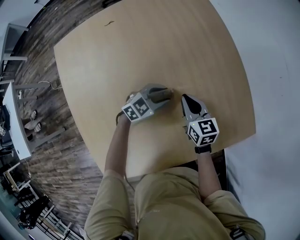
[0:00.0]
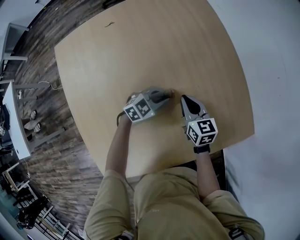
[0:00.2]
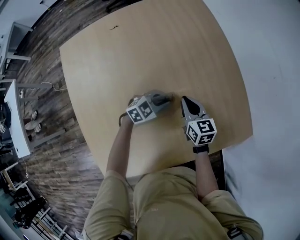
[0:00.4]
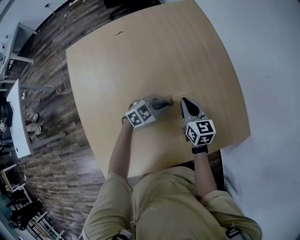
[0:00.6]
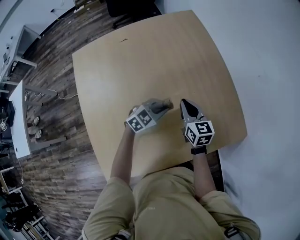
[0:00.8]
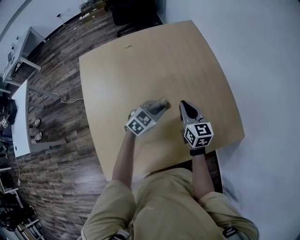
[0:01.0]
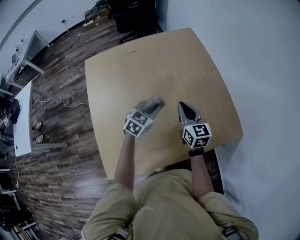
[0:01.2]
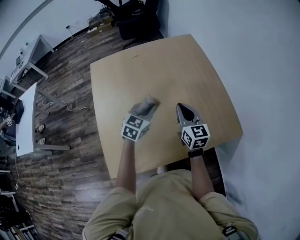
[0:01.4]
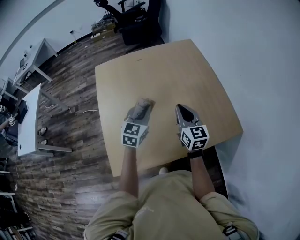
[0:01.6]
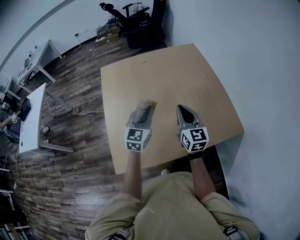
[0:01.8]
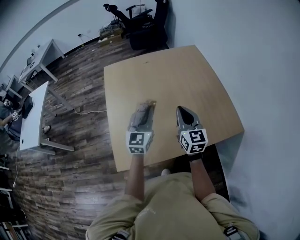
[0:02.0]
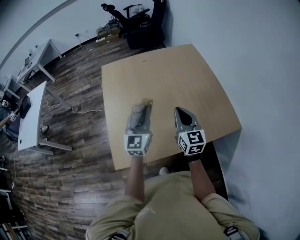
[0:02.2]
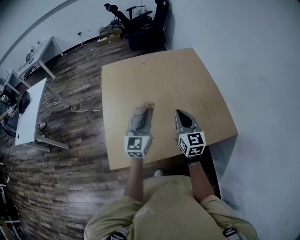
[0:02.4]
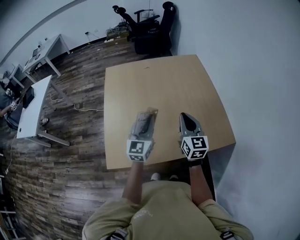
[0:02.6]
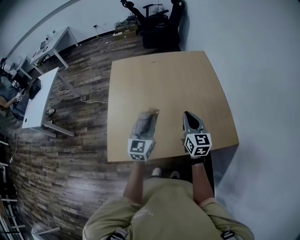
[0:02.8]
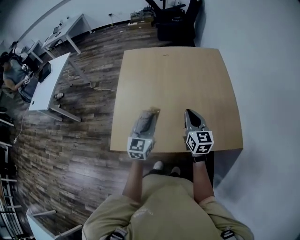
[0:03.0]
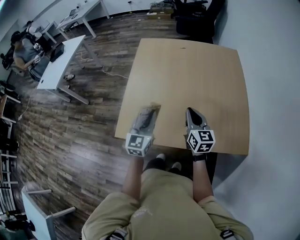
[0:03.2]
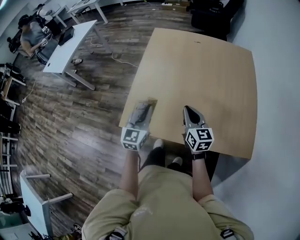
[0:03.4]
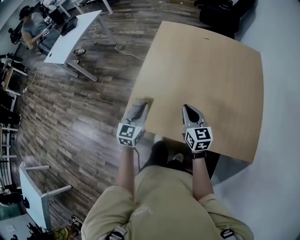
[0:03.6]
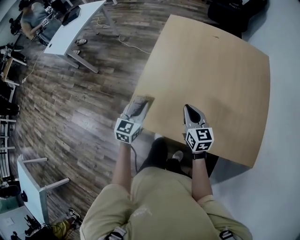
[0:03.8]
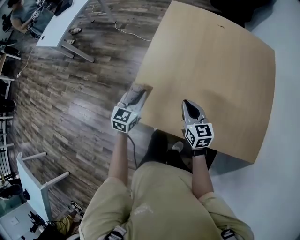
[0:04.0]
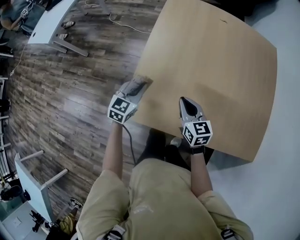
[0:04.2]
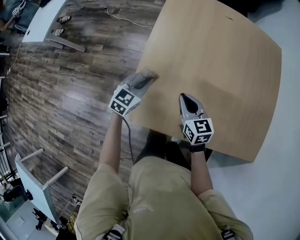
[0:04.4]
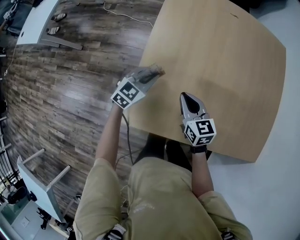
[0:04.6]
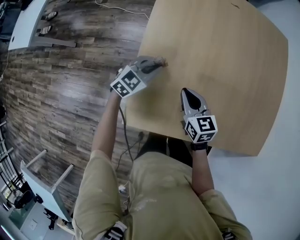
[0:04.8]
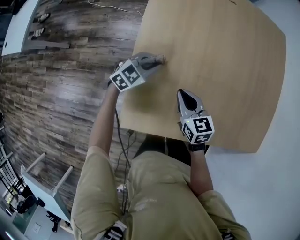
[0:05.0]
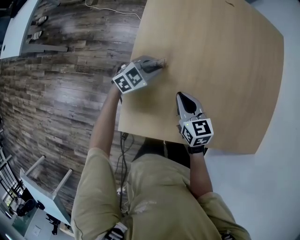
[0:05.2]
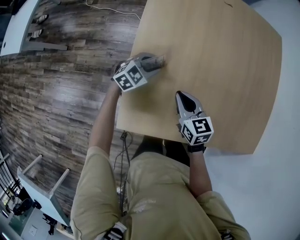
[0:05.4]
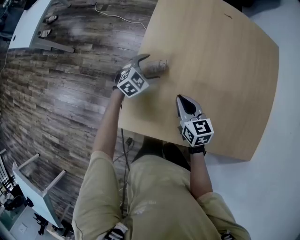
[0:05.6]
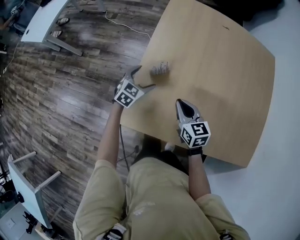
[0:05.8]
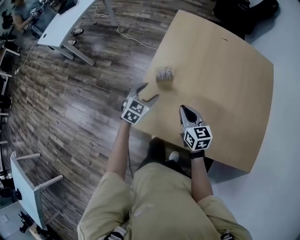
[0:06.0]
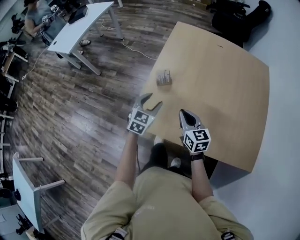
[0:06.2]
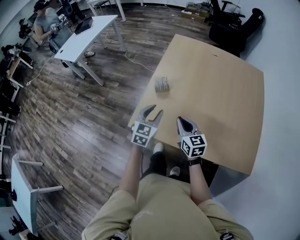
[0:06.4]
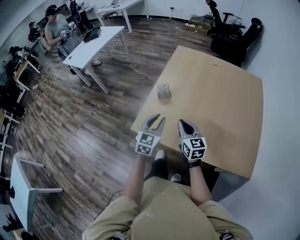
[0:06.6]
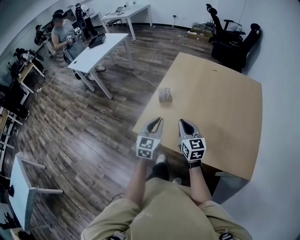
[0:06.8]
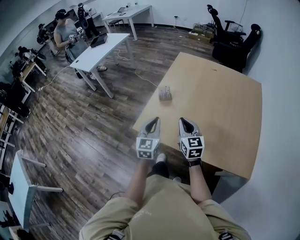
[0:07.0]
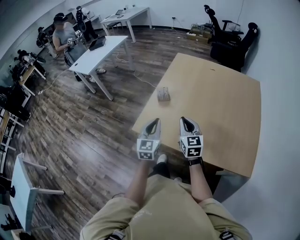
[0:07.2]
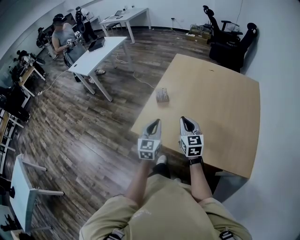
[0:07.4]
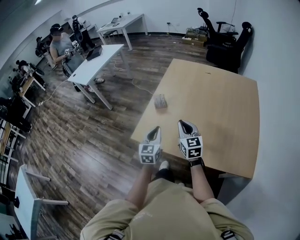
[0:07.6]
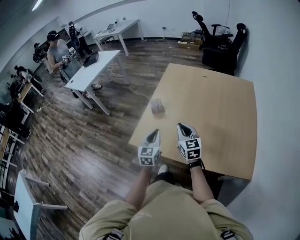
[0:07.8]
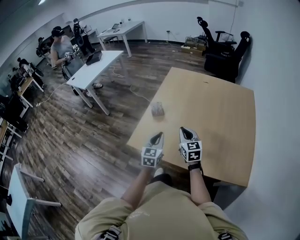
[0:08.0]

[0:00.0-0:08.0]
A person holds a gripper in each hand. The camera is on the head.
0:00.0 to 0:01.6: The two grippers go roughly 25 cm upward. The right gripper rotates approximately 20 degrees, while the left gripper swivels roughly 50 degrees.
0:01.6 to 0:03.2: The right gripper moves backward, some 10 cm, and goes to the right and returns, approximately 5 cm each way. Meanwhile the left gripper is displaced backward by some 15 cm, and swivels approximately 30 degrees.
0:03.2 to 0:04.8: The right gripper is displaced to the left, downward and forward by roughly 35 cm, and turns by about 30 degrees. Meanwhile the left gripper travels downward, forward and to the left by approximately 40 cm, and turns by some 40 degrees.
0:04.8 to 0:06.4: The right gripper moves roughly 20 cm; the left gripper changes place by about 30 cm, rotates about 40 degrees, and opens, then closes again.
0:06.4 to 0:08.0: The right gripper is displaced to the right by some 10 cm. Meanwhile the left gripper heads backward and to the right, covering some 10 cm.

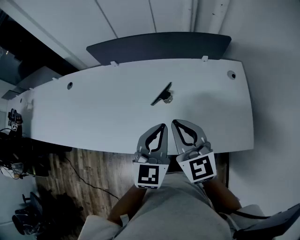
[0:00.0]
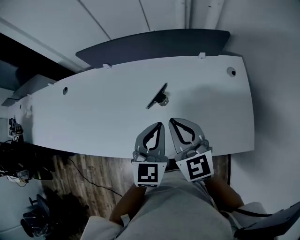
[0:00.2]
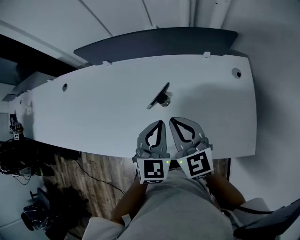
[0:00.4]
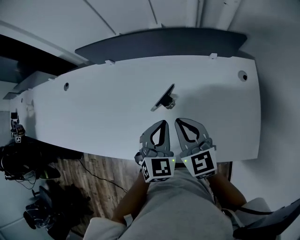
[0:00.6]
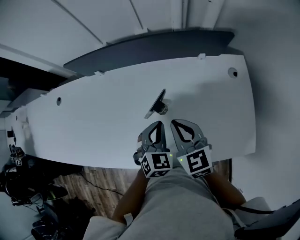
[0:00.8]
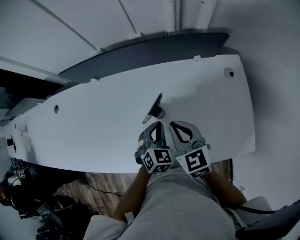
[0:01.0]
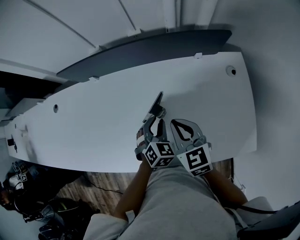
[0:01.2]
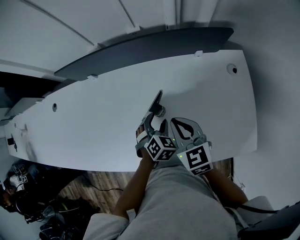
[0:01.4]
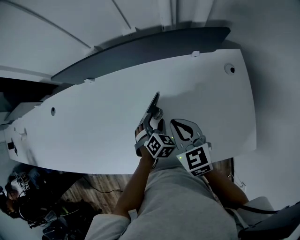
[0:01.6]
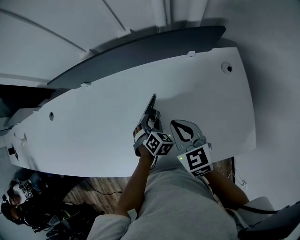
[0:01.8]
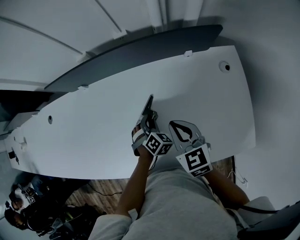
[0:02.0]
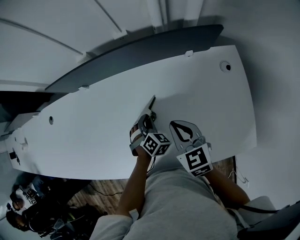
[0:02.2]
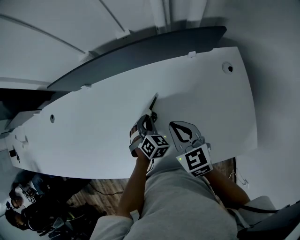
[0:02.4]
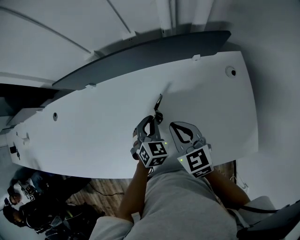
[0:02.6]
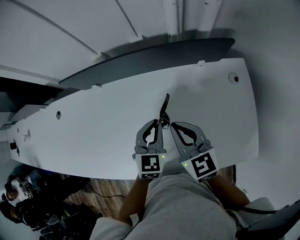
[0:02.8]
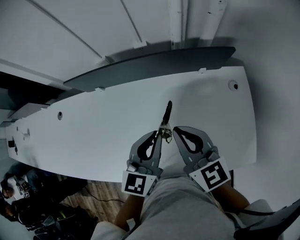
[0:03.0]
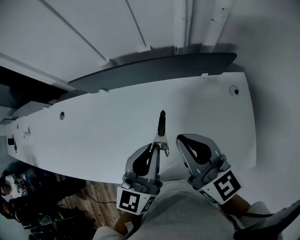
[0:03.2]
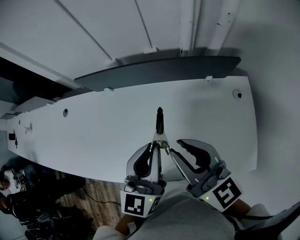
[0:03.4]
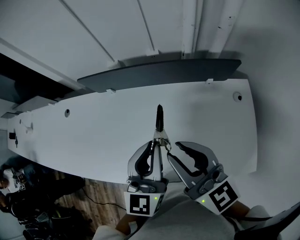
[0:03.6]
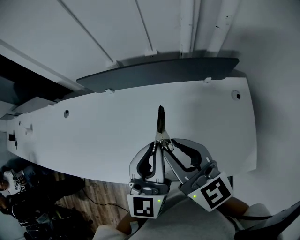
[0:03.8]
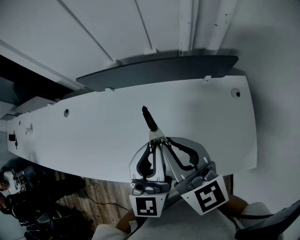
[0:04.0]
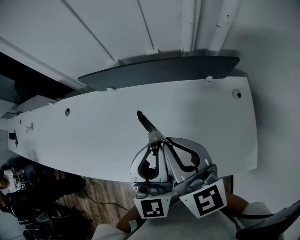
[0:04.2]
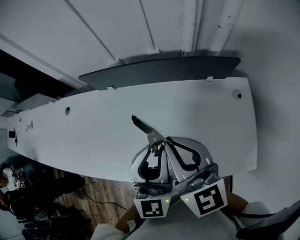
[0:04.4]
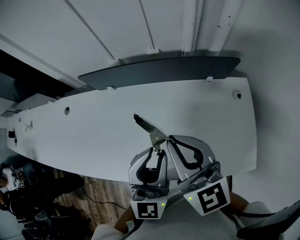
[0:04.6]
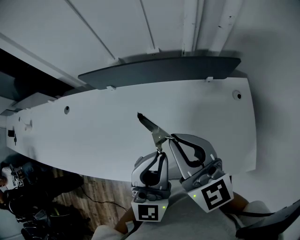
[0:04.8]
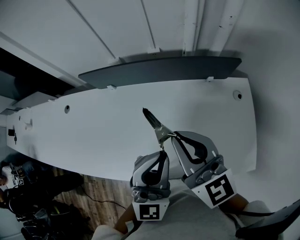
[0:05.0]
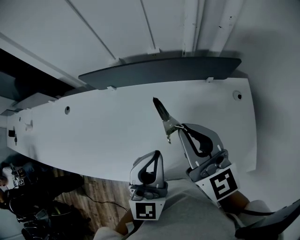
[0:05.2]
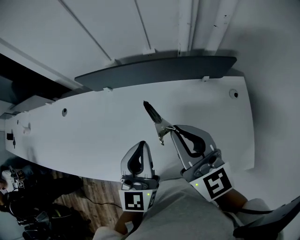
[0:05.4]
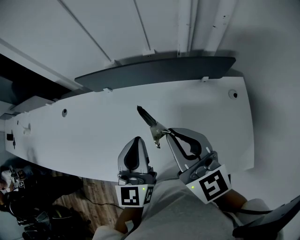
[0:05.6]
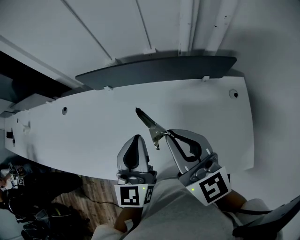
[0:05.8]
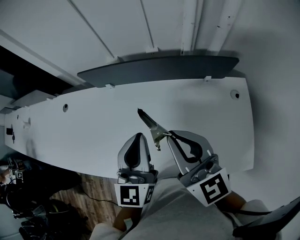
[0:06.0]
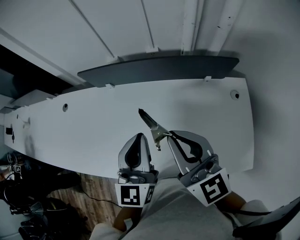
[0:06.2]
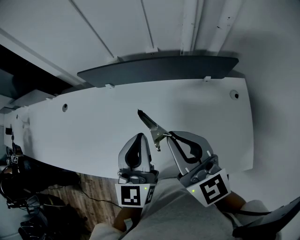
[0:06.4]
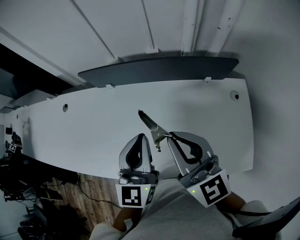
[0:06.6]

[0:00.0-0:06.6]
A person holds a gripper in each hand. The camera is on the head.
0:00.0 to 0:01.6: The right gripper travels forward, downward and to the right by some 20 cm, while the left gripper heads downward and forward, covering about 30 cm, tilts its fingers about 40 degrees downward, and opens.
0:01.6 to 0:03.2: The right gripper moves upward, approximately 20 cm, and swivels approximately 30 degrees. Meanwhile the left gripper shifts roughly 30 cm upward, angles its fingers upward, by some 50 degrees, and closes up.
0:03.2 to 0:05.0: The right gripper changes place by some 5 cm, and opens and closes again; the left gripper shifts roughly 5 cm backward and upward, and changes its angle by some 30 degrees.
0:05.0 to 0:06.6: The left gripper shifts about 5 cm forward, and changes its angle by approximately 20 degrees.

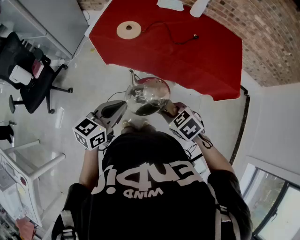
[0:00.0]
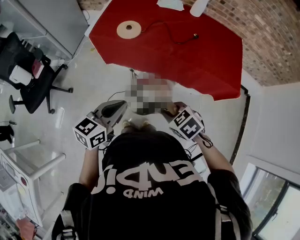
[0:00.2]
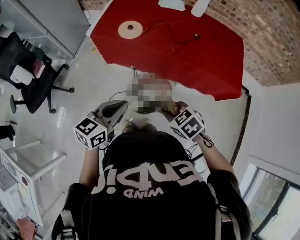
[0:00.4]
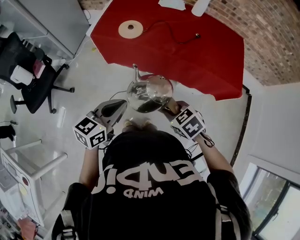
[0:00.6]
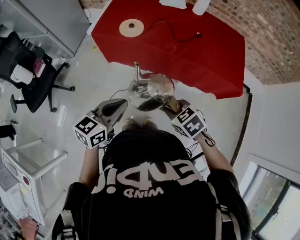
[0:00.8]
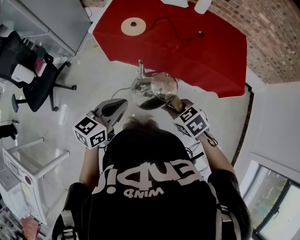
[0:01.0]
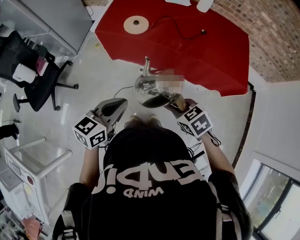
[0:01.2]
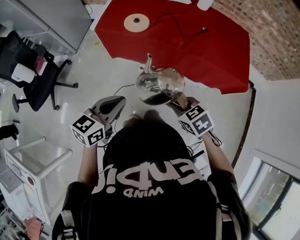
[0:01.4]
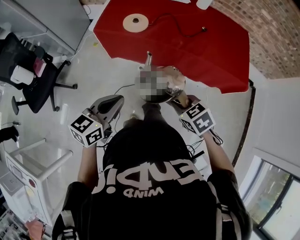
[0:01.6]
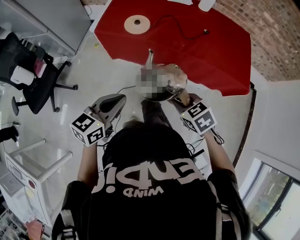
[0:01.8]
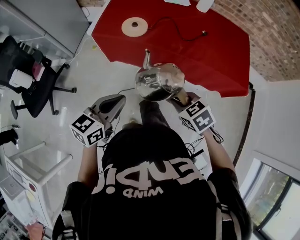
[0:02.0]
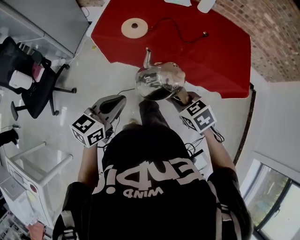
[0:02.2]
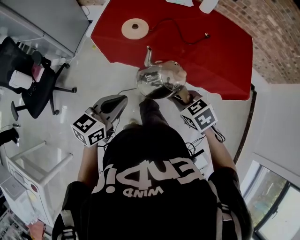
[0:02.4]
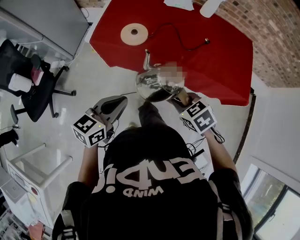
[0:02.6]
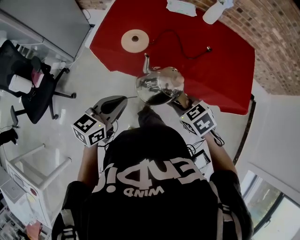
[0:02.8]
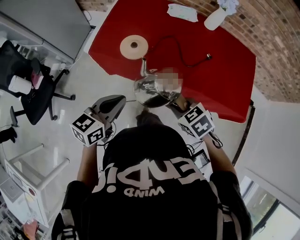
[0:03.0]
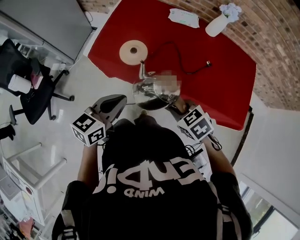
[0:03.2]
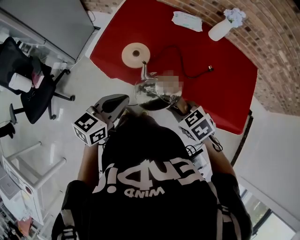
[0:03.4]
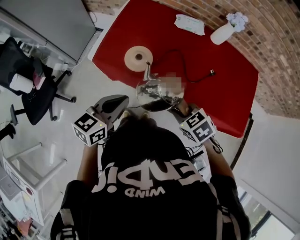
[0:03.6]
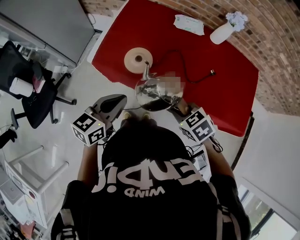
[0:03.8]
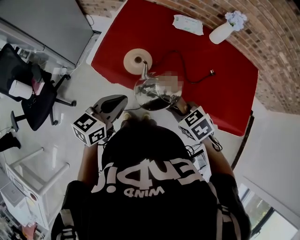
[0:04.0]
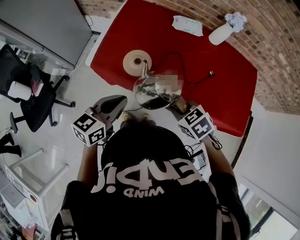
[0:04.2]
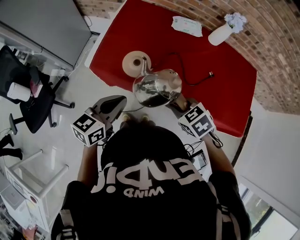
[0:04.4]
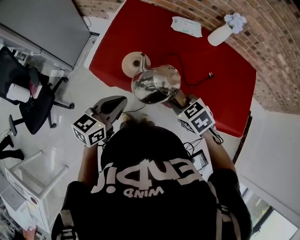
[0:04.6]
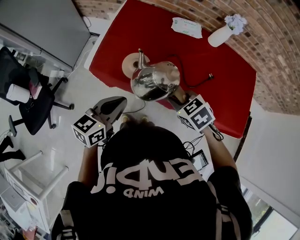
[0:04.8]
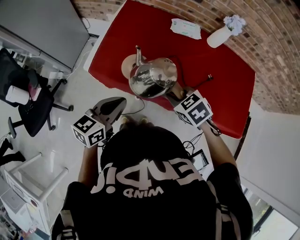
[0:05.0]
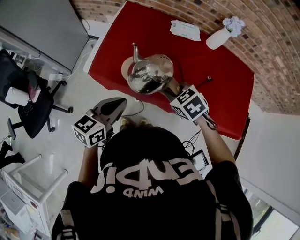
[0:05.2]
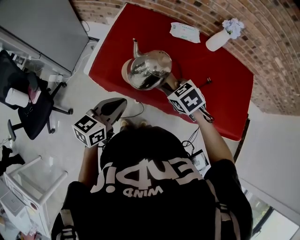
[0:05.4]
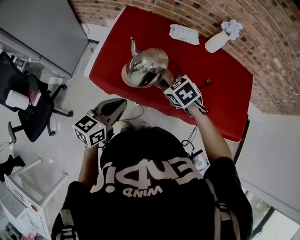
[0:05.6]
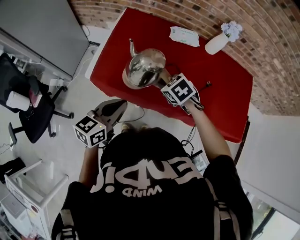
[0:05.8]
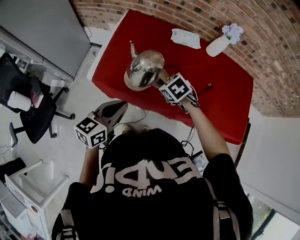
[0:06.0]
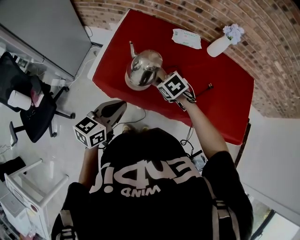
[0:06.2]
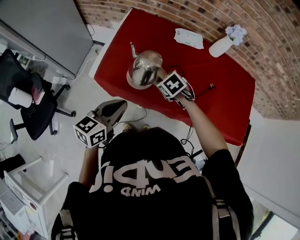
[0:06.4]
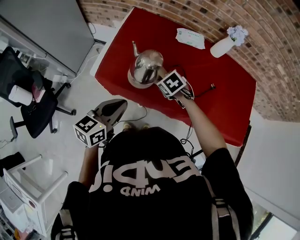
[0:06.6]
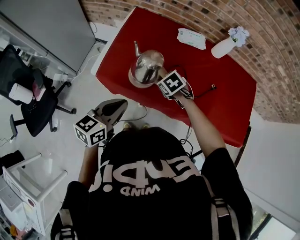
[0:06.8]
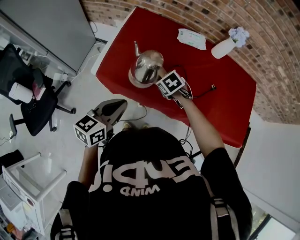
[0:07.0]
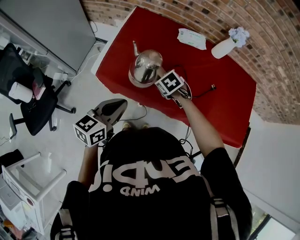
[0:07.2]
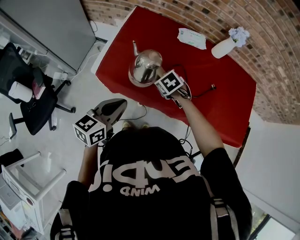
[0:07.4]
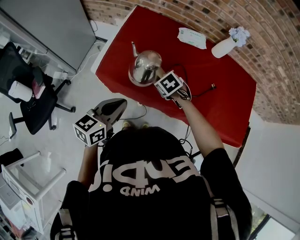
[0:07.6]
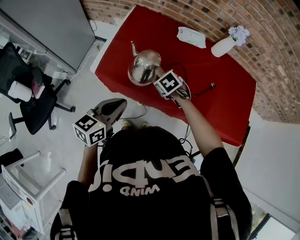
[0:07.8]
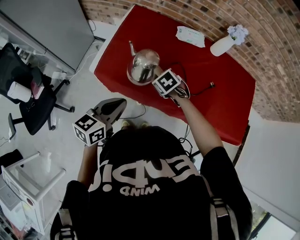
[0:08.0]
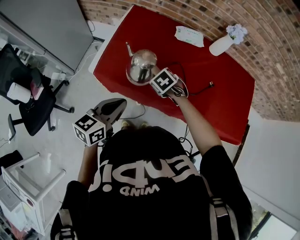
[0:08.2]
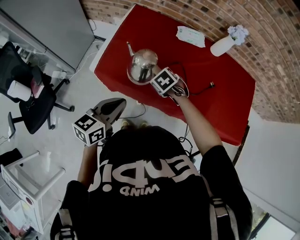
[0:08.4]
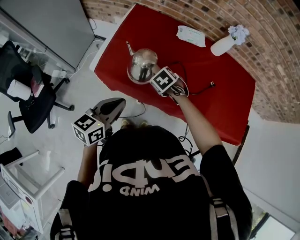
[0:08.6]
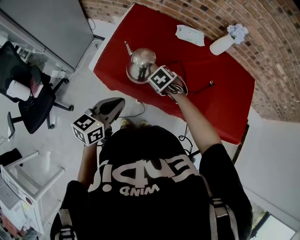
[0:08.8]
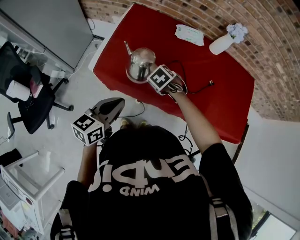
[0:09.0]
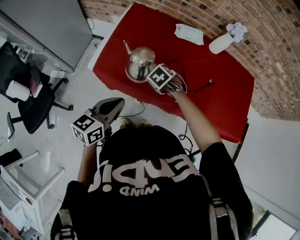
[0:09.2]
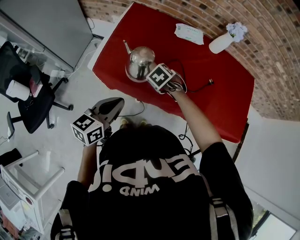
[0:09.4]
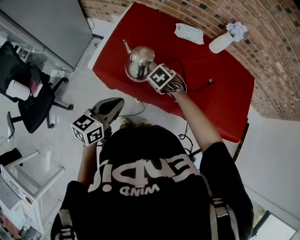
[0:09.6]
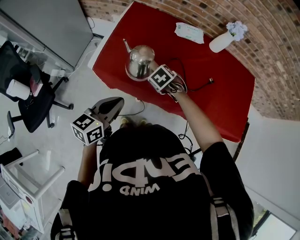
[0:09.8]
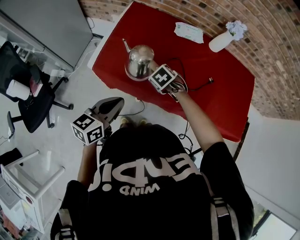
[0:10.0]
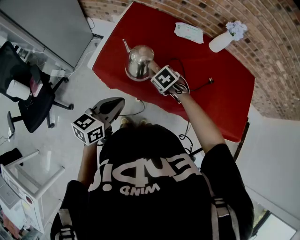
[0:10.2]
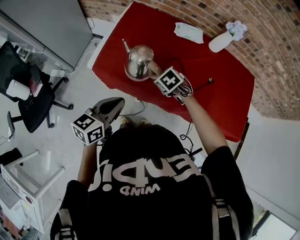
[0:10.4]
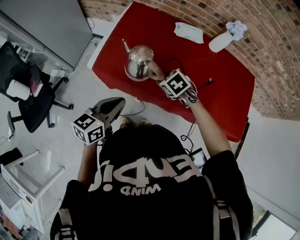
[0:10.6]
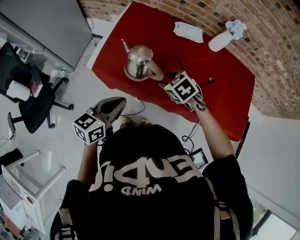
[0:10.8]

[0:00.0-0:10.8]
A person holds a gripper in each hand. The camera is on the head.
0:00.0 to 0:01.6: The right gripper heads forward, covering some 5 cm; the left gripper heads to the left and forward, covering some 10 cm.
0:01.6 to 0:03.0: Both grippers travel together forward, roughly 15 cm.
0:03.0 to 0:04.6: The two grippers go about 10 cm forward.
0:04.6 to 0:06.2: The right gripper heads forward, downward and to the left, covering approximately 15 cm.
0:06.2 to 0:09.2: The grippers stay close to where they were, moving slightly.
0:09.2 to 0:10.8: The right gripper shifts roughly 5 cm upward, and opens its fingers.
